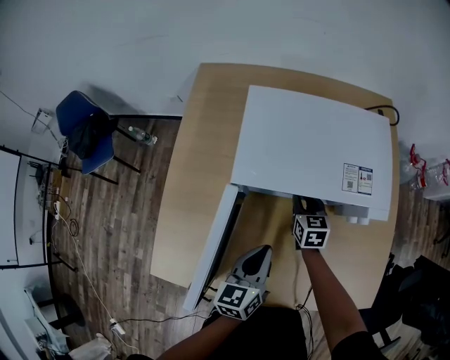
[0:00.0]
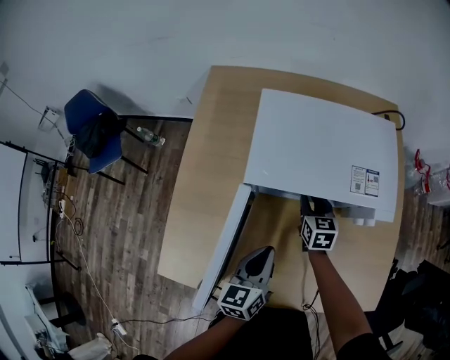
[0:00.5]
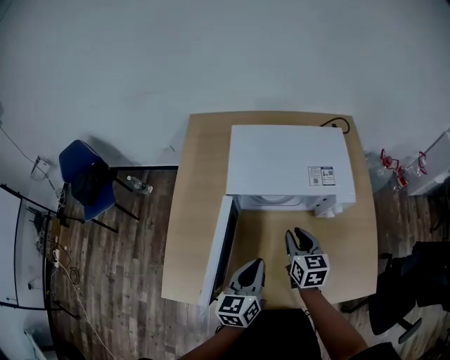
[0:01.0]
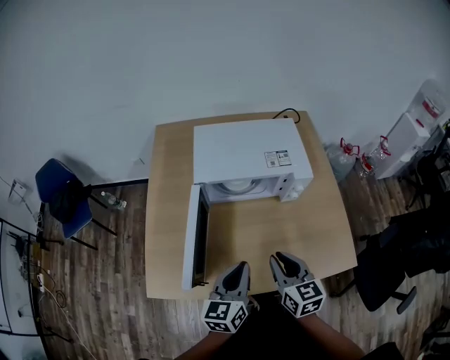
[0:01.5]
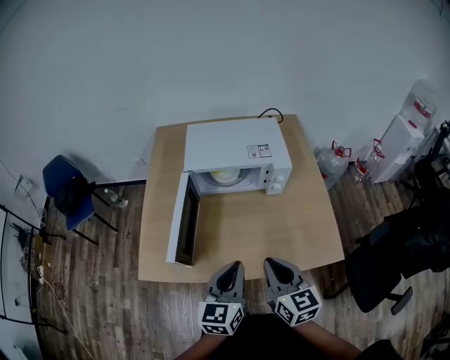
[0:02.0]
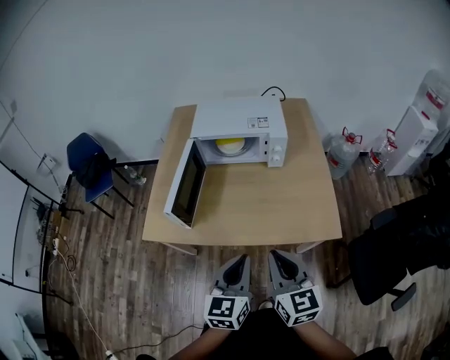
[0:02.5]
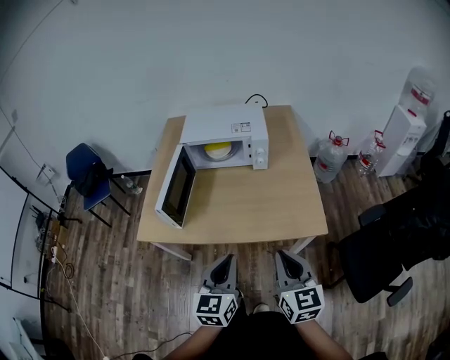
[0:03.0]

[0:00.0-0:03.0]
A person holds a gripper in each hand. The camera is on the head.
0:00.0 to 0:01.5: The right gripper goes approximately 35 cm backward and upward; the left gripper shifts some 15 cm backward and upward.
0:01.5 to 0:03.0: Both grippers travel together backward and to the right, about 30 cm.

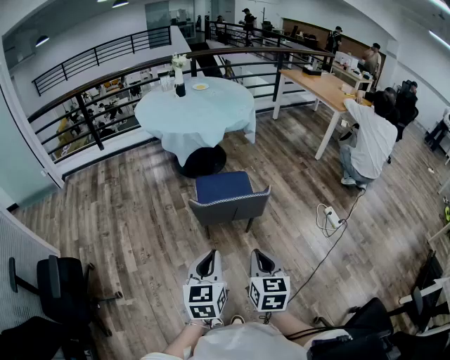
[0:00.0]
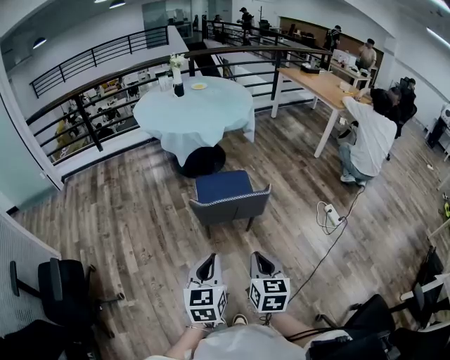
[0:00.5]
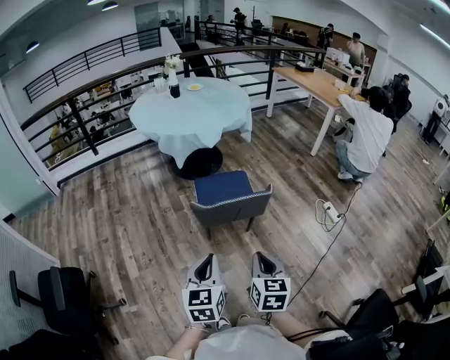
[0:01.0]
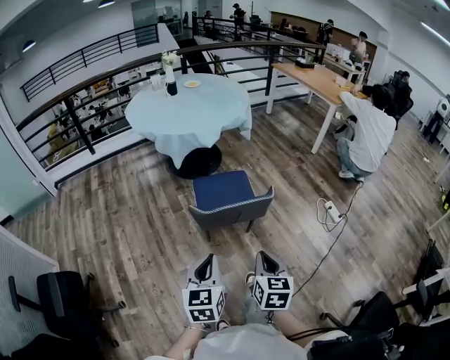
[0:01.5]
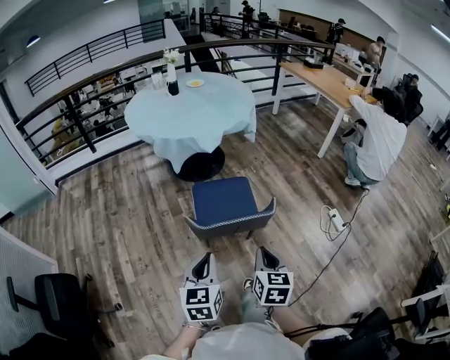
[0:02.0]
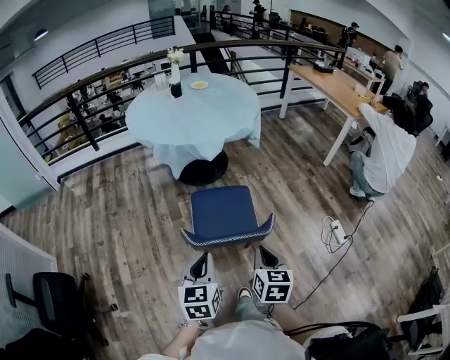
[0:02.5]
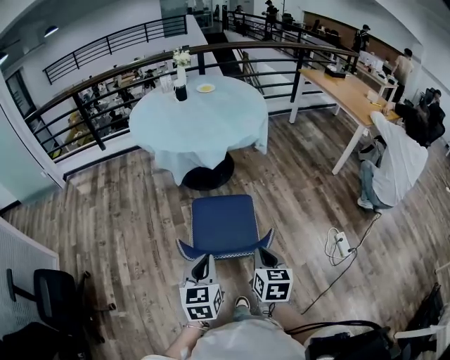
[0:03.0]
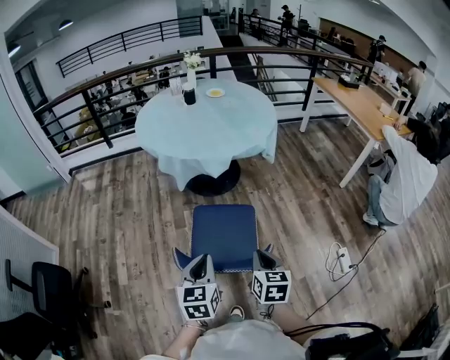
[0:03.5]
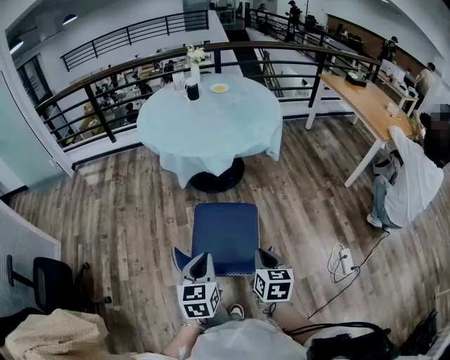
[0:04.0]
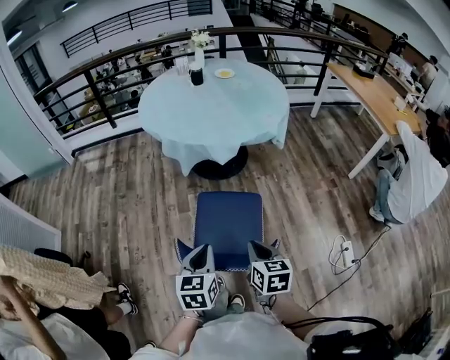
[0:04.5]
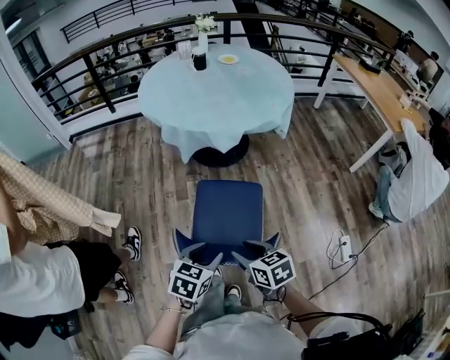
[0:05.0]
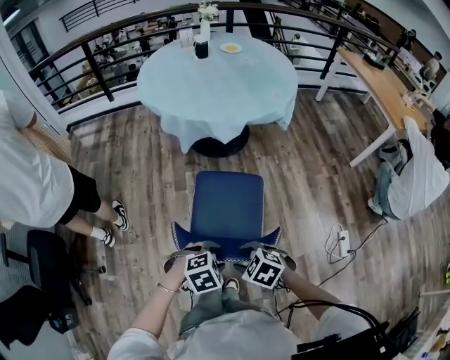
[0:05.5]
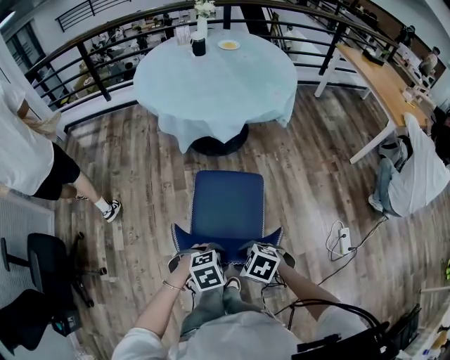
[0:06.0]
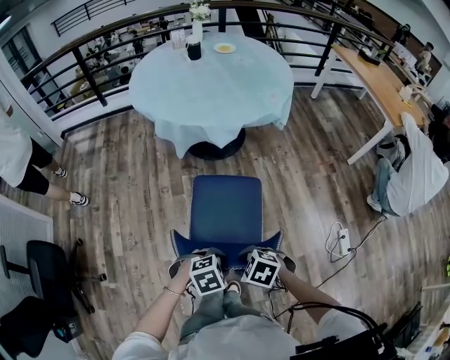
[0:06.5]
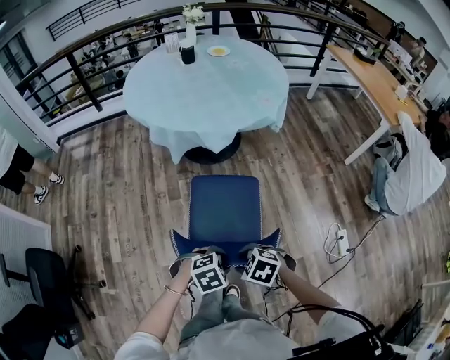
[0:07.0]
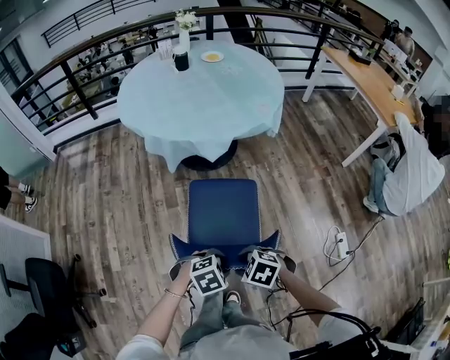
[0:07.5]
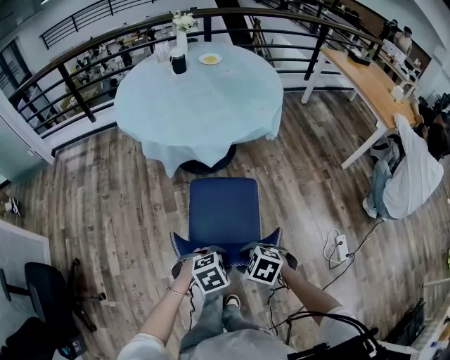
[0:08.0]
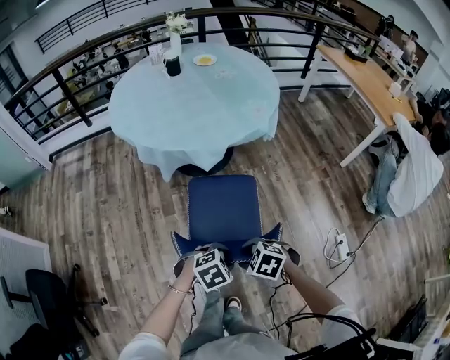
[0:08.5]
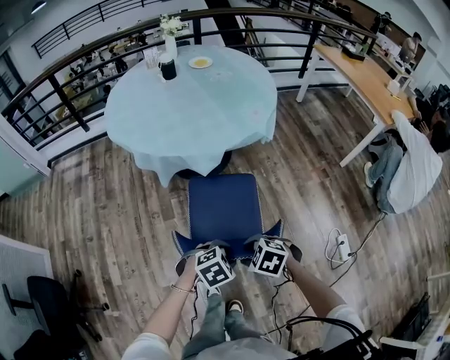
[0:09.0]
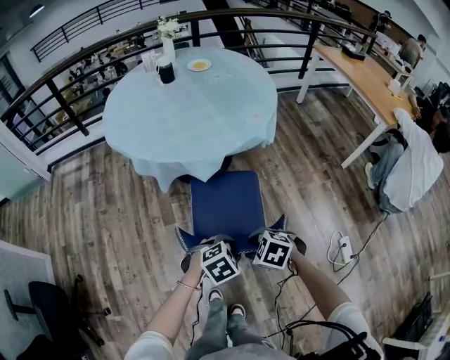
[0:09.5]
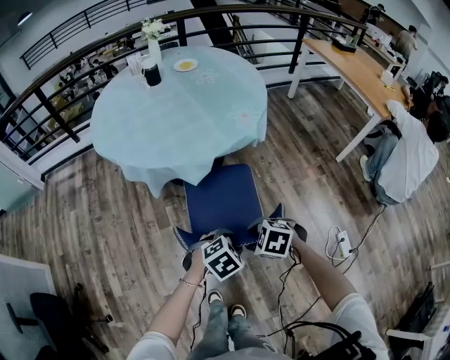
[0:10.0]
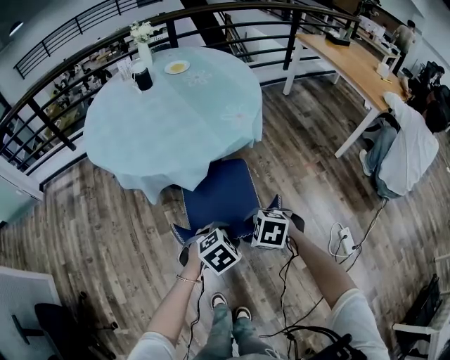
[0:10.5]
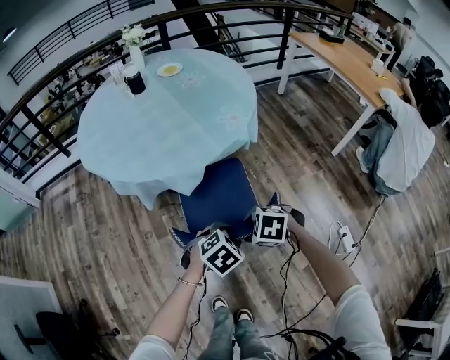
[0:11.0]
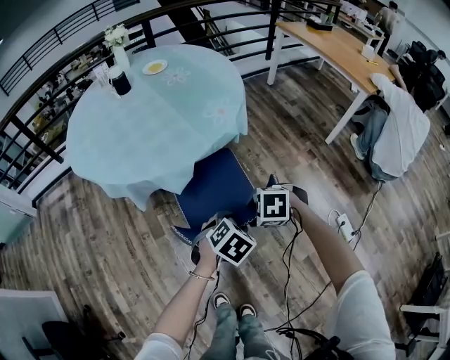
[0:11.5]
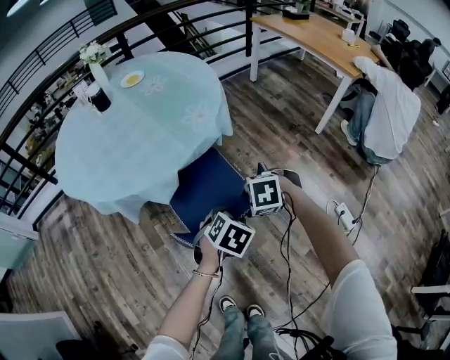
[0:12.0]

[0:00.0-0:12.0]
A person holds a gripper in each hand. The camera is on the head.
0:00.0 to 0:02.0: The grippers both shift forward by roughly 15 cm.
0:02.0 to 0:04.0: Both grippers move forward and to the right, about 20 cm.
0:04.0 to 0:06.0: The left gripper is displaced downward by some 15 cm, tips its fingers downward by about 40 degrees, and opens its fingers, while the right gripper changes place by about 15 cm, angles its fingers downward, by some 30 degrees, and opens its fingers.
0:06.0 to 0:08.0: The right gripper ends up roughly 10 cm from where it was. The left gripper shifts by about 10 cm.
0:08.0 to 0:10.0: The left gripper changes place by approximately 15 cm, while the right gripper moves about 15 cm.
0:10.0 to 0:12.0: The right gripper changes place by some 15 cm, while the left gripper moves some 15 cm.

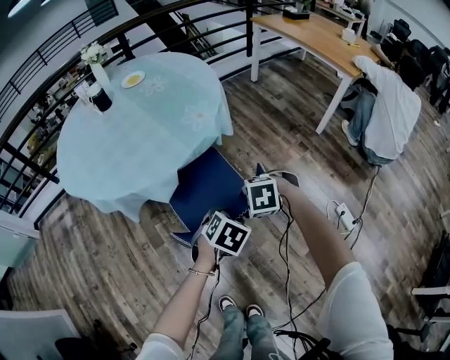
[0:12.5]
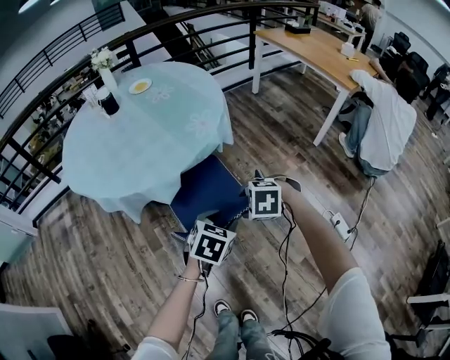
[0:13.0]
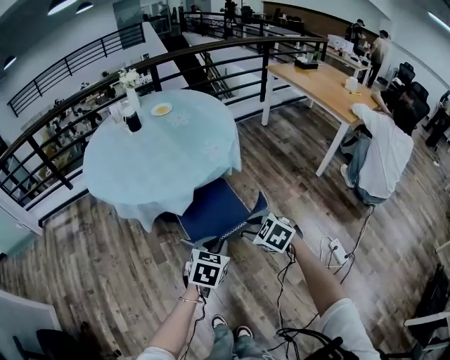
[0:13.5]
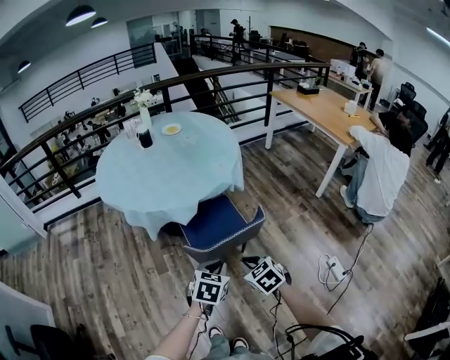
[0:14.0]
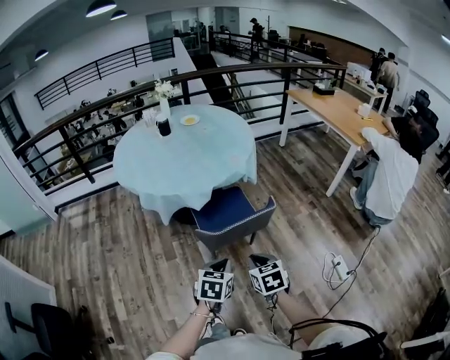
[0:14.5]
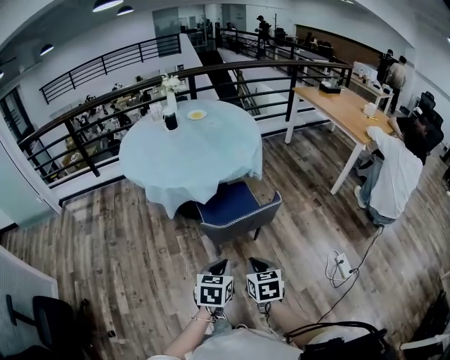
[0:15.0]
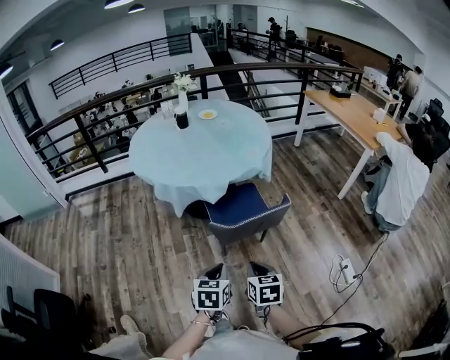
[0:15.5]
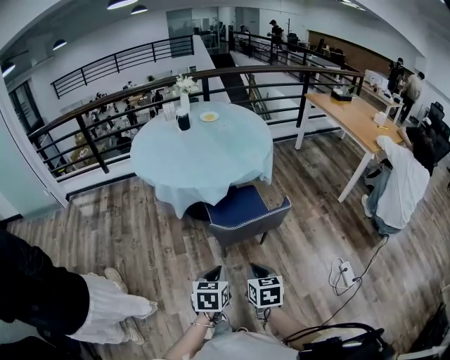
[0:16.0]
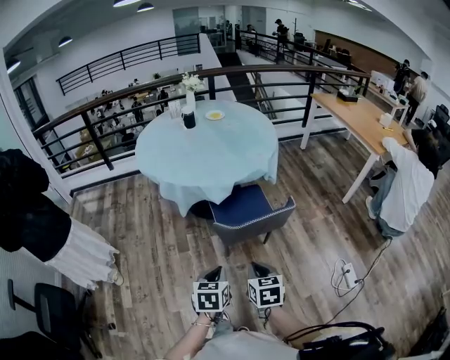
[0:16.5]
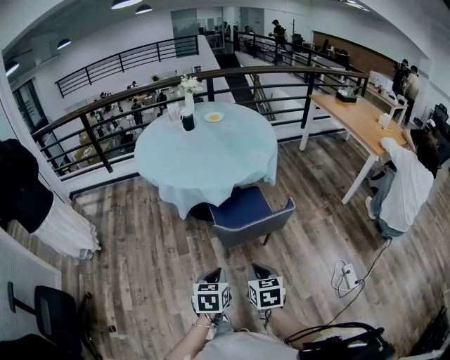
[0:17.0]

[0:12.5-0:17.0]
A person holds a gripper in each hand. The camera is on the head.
0:12.5 to 0:14.5: The left gripper moves approximately 25 cm, rotates about 40 degrees, and closes. The right gripper shifts by approximately 25 cm, tilts its fingers some 30 degrees upward, and closes up.
0:14.5 to 0:17.0: The right gripper shifts some 5 cm to the left; the left gripper heads to the left, covering about 10 cm.

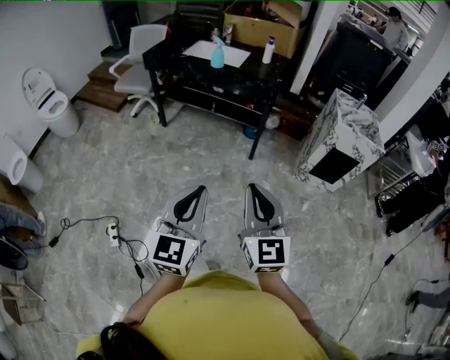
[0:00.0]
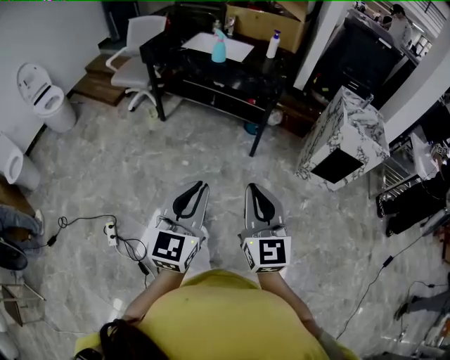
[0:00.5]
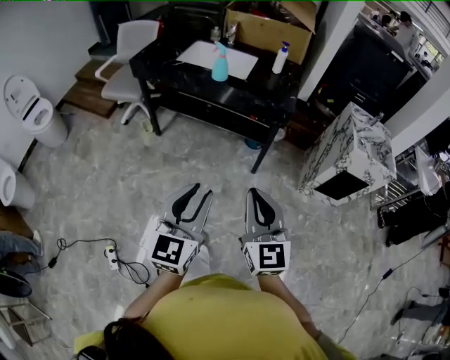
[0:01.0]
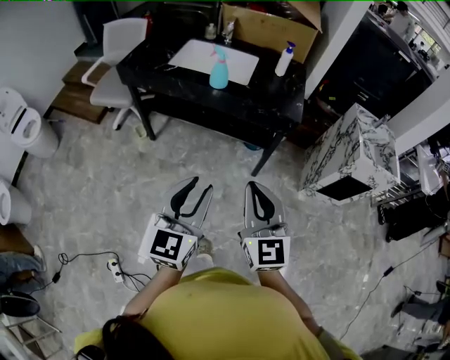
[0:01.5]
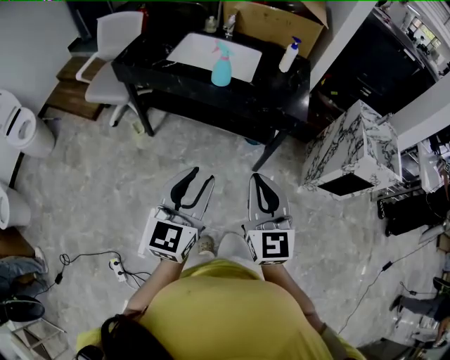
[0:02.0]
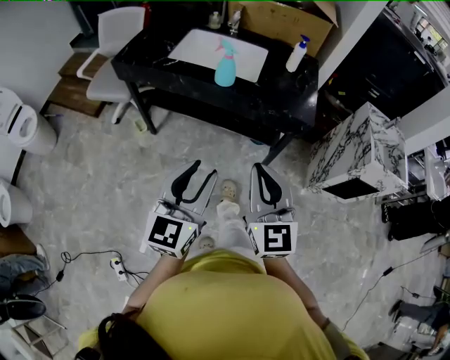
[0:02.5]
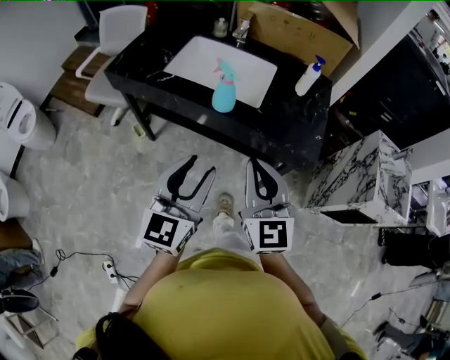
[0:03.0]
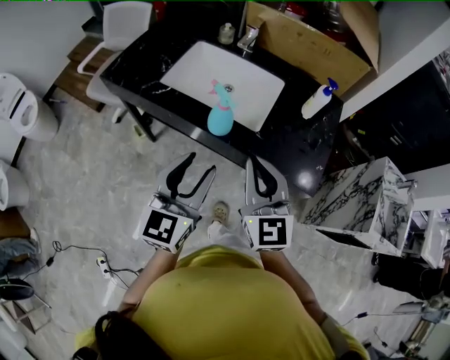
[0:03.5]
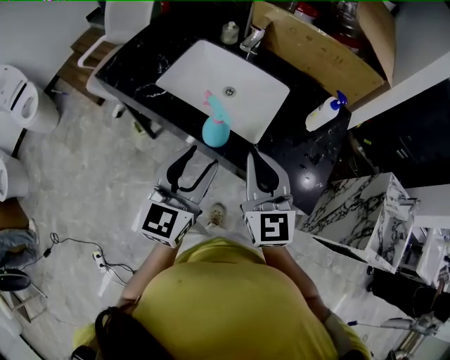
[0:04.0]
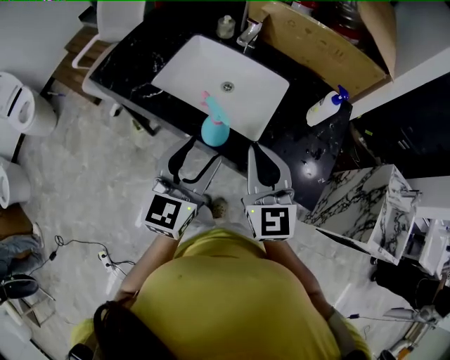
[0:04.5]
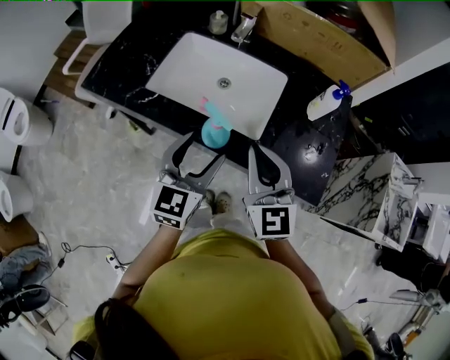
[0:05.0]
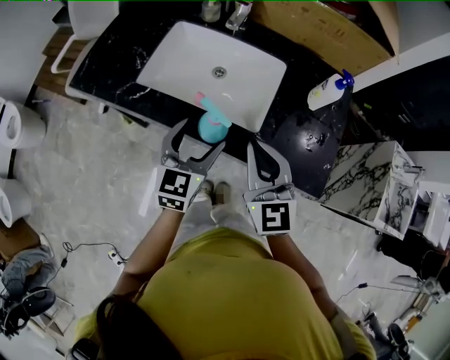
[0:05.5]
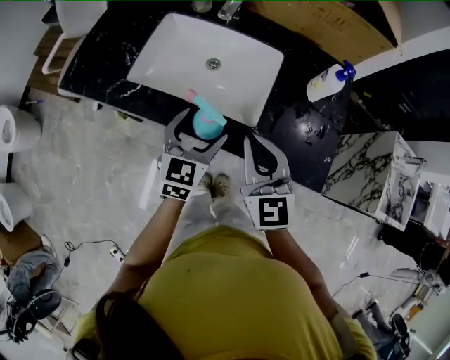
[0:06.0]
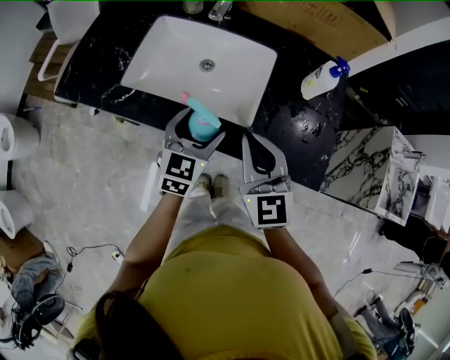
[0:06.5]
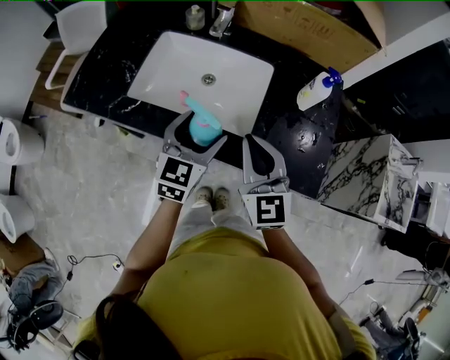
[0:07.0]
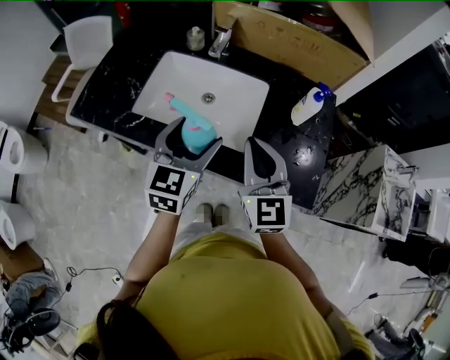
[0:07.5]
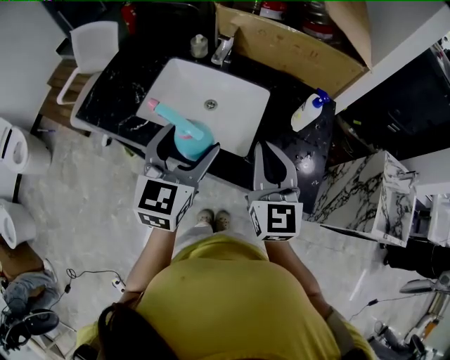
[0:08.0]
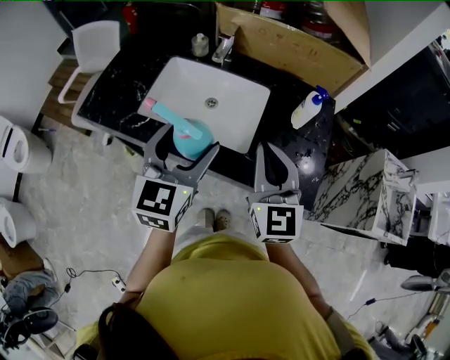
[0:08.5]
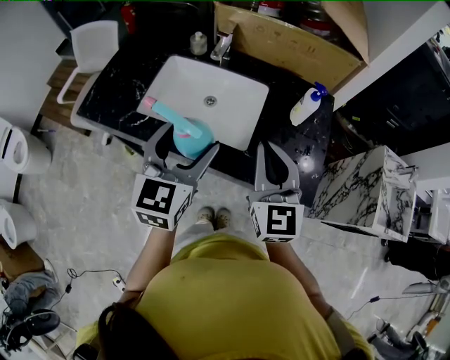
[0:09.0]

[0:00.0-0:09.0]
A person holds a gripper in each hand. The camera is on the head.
0:00.0 to 0:02.0: The pair of grippers is taken forward, approximately 40 cm.
0:02.0 to 0:04.5: The pair of grippers is taken forward, roughly 40 cm.
0:04.5 to 0:07.0: The left gripper is displaced forward and downward by some 15 cm, while the right gripper changes place by about 5 cm.
0:07.0 to 0:09.0: The right gripper heads upward, covering approximately 10 cm, while the left gripper is displaced upward by about 15 cm.
